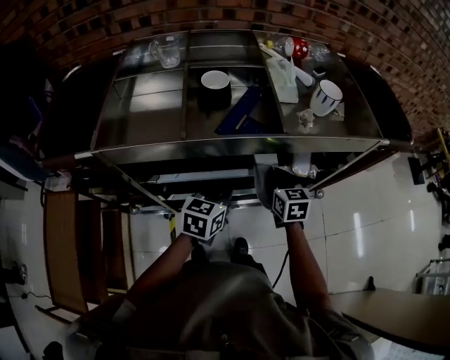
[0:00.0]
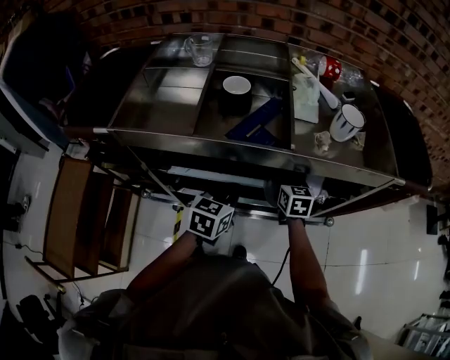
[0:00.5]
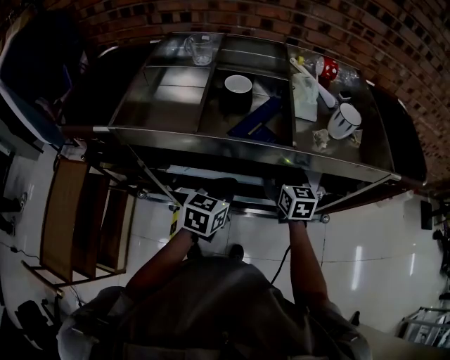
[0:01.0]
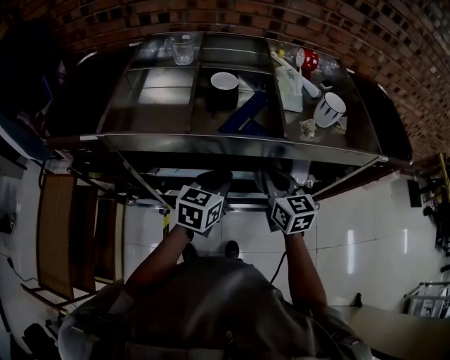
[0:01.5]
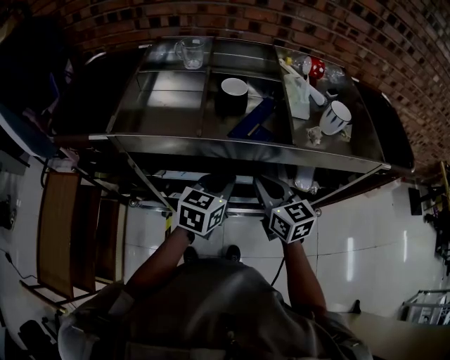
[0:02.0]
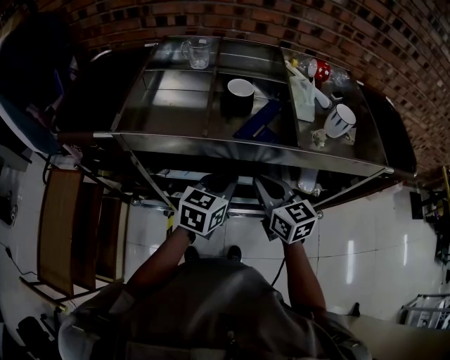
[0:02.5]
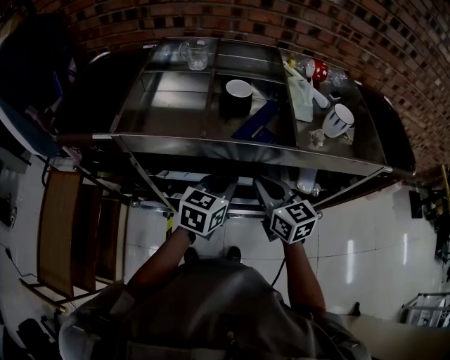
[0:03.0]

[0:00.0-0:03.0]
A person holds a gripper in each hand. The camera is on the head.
0:00.0 to 0:01.5: The right gripper moves upward, about 10 cm, and opens, then closes again.
0:01.5 to 0:03.0: The right gripper is displaced to the left by about 5 cm.

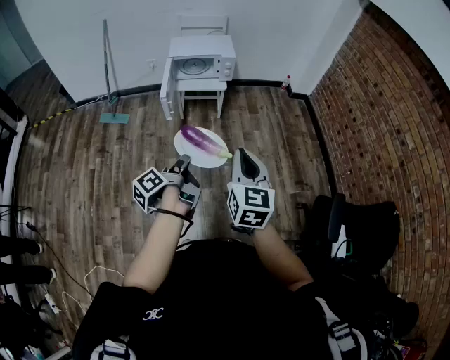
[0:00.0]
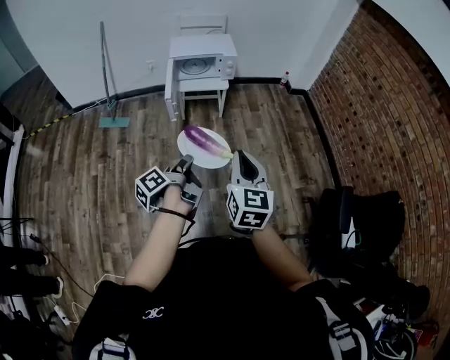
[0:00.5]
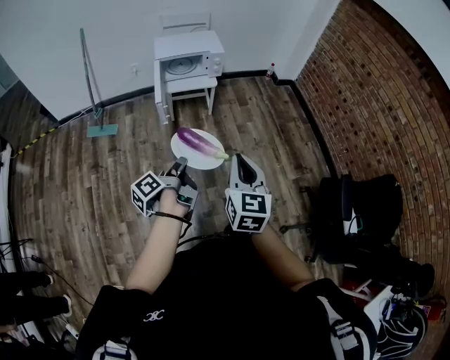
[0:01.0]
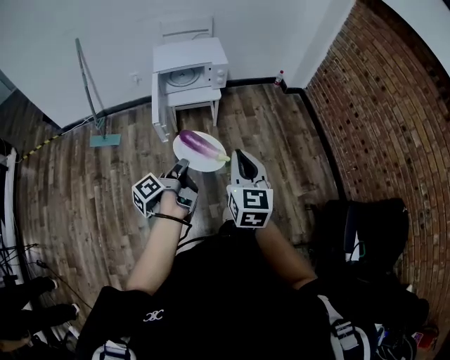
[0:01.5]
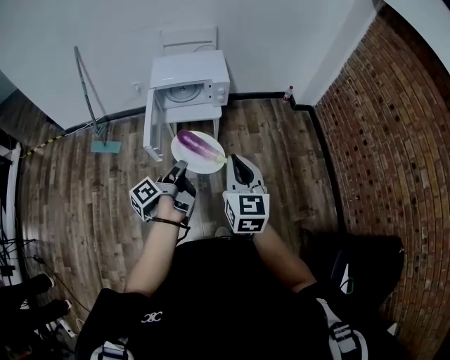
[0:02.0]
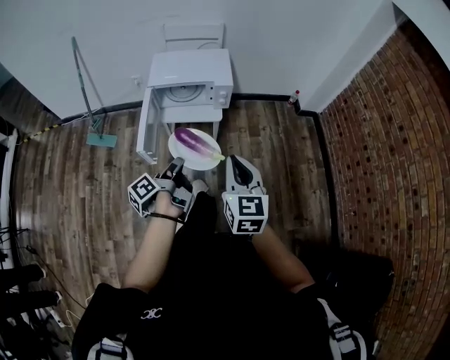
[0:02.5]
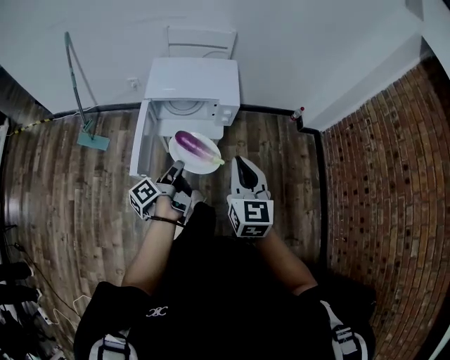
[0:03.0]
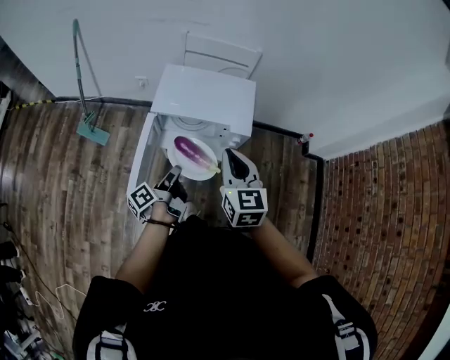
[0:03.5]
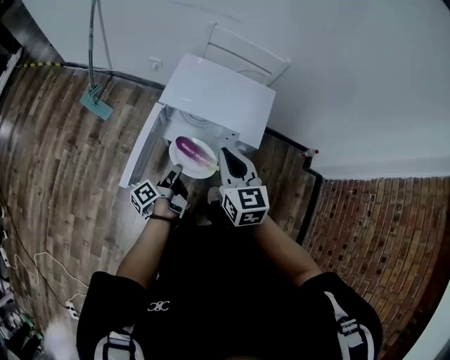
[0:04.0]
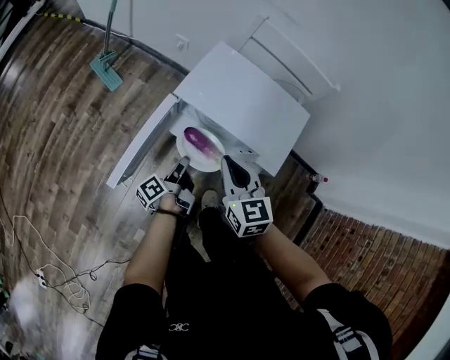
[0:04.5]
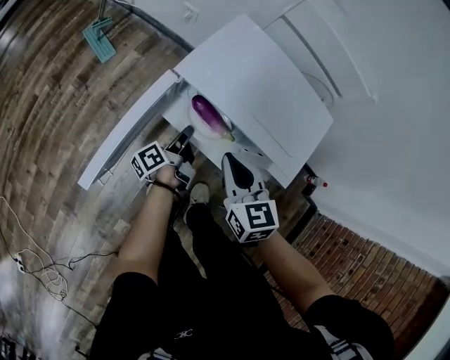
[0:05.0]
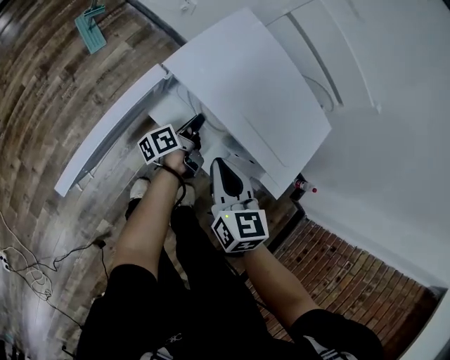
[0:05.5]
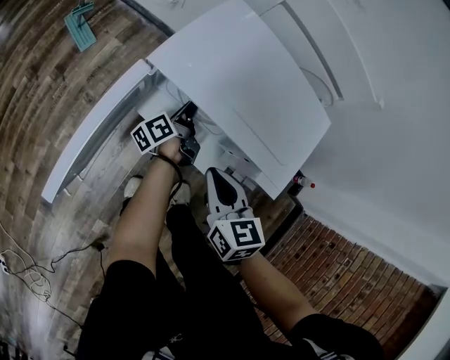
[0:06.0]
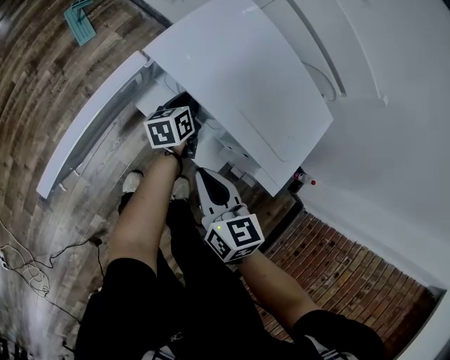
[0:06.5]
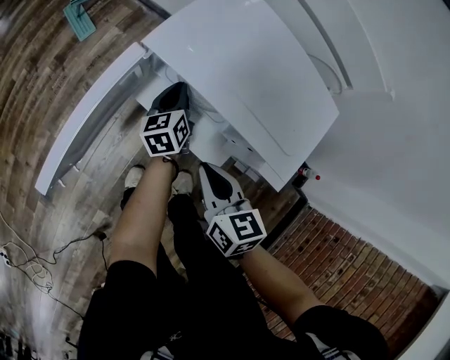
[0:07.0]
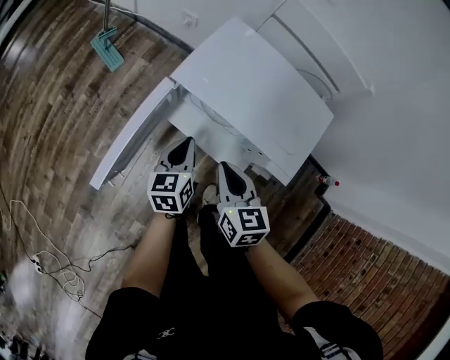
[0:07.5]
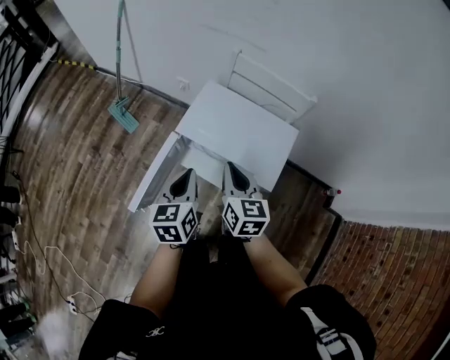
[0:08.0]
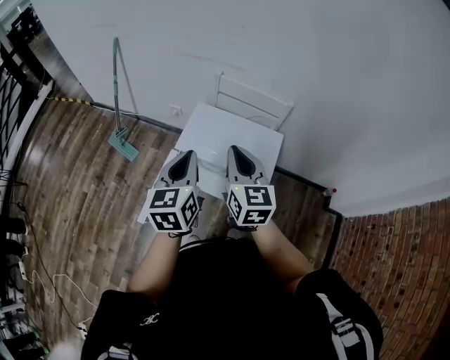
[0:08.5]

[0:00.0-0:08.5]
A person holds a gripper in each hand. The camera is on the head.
0:00.0 to 0:02.0: The right gripper moves some 30 cm.
0:02.0 to 0:04.0: The right gripper moves about 40 cm, and changes its angle by about 30 degrees.
0:04.0 to 0:06.5: The right gripper is displaced downward by approximately 25 cm, and turns by some 30 degrees.
0:06.5 to 0:08.5: The right gripper travels upward by some 35 cm, and swivels about 40 degrees.

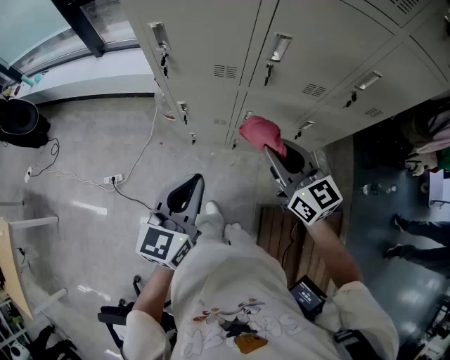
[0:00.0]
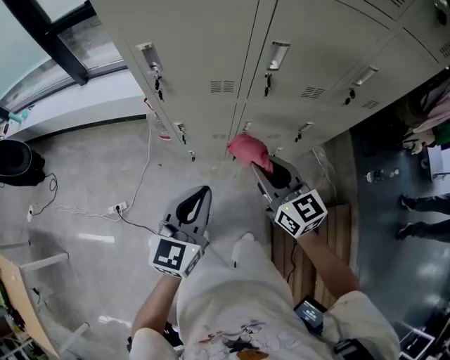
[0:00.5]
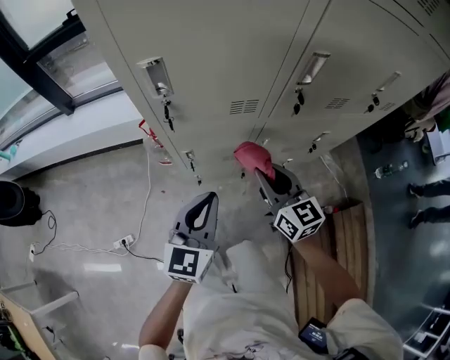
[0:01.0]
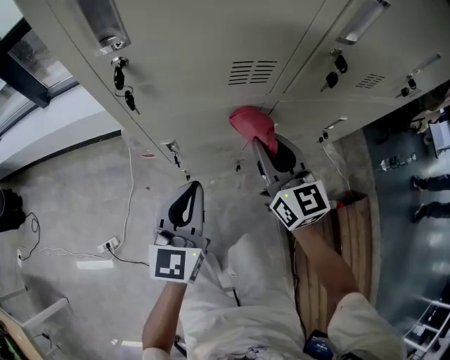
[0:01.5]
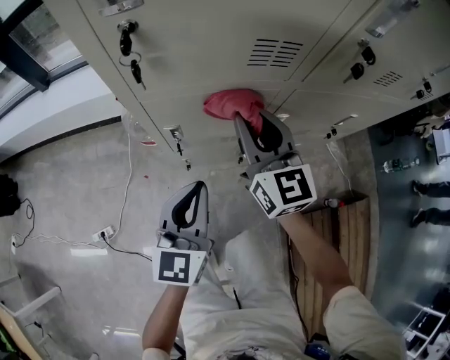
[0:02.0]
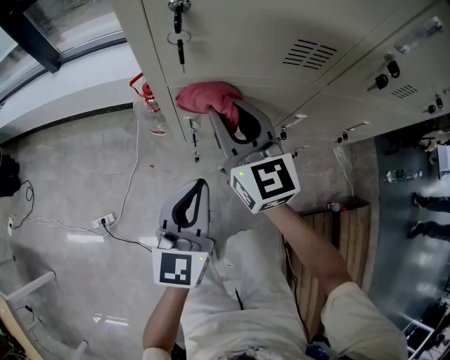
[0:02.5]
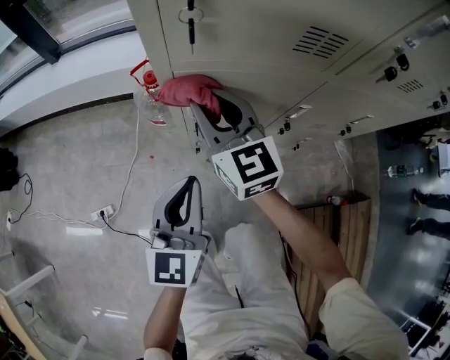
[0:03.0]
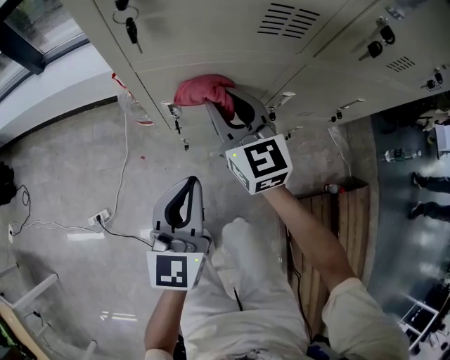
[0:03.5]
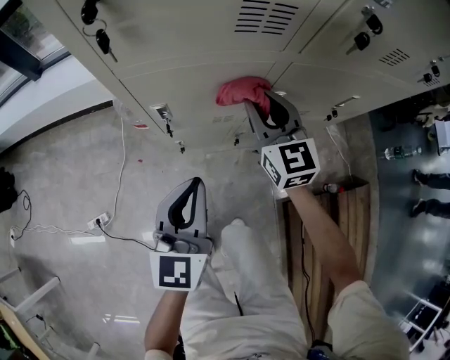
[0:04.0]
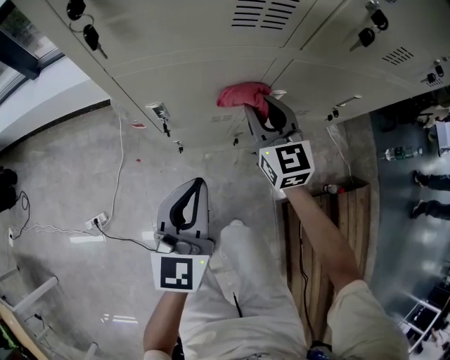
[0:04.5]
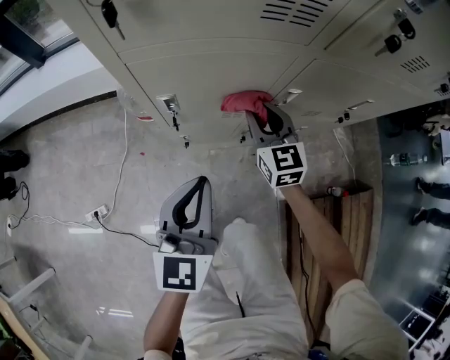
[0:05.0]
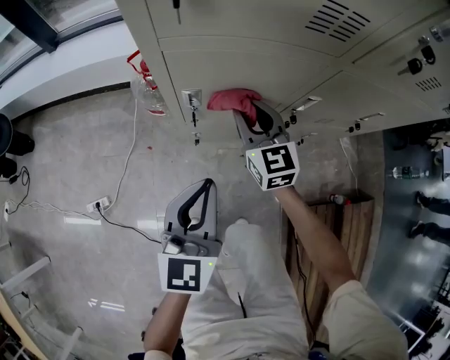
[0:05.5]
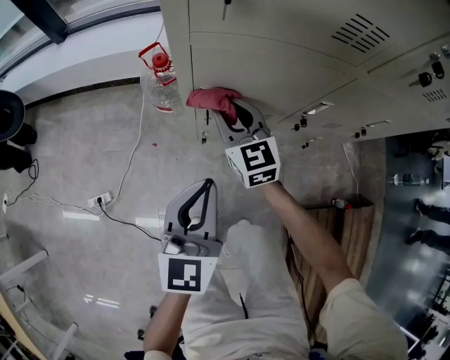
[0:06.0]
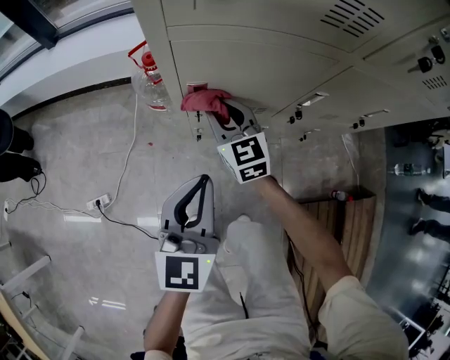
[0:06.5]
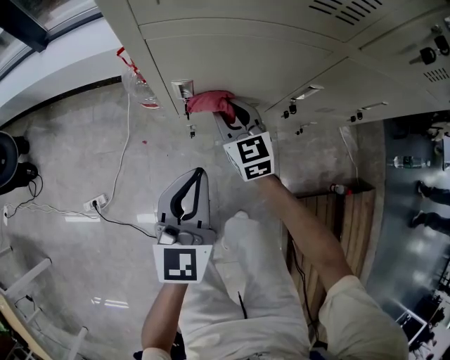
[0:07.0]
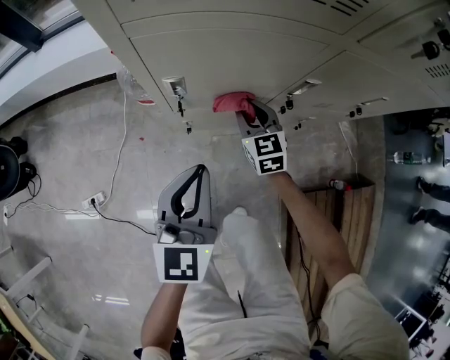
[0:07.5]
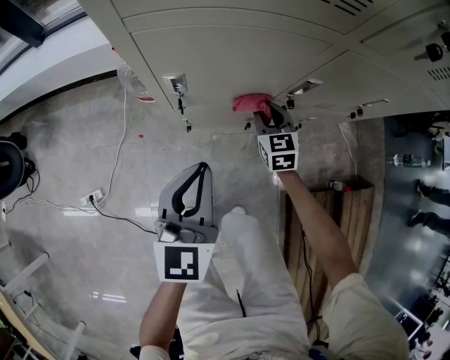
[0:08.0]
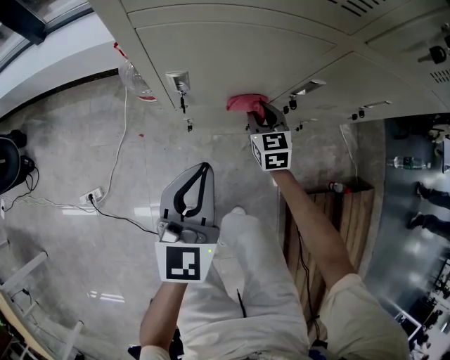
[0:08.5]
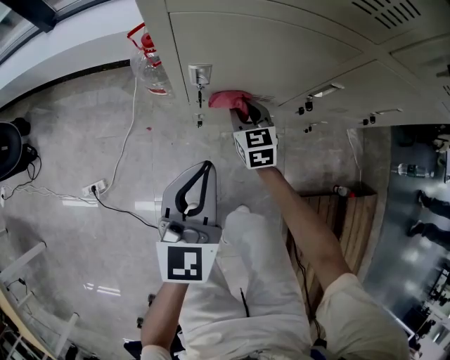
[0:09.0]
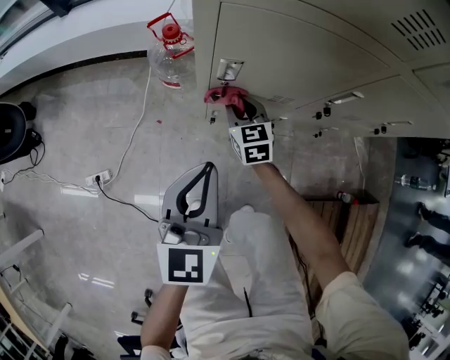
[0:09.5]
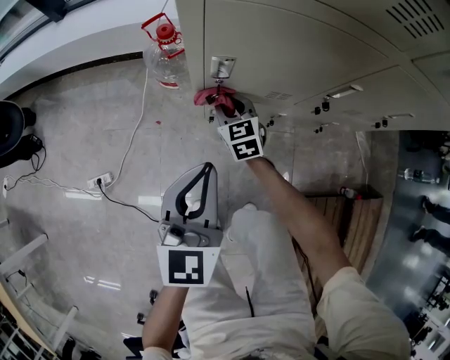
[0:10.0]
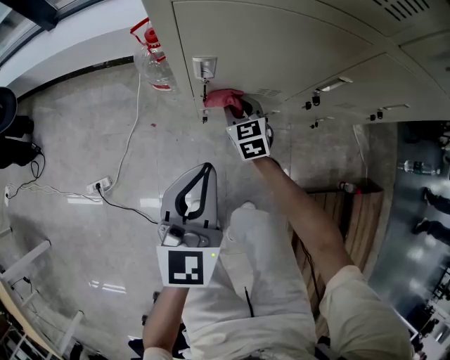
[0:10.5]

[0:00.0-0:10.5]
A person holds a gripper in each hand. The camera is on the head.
0:00.0 to 0:02.0: The right gripper heads downward, forward and to the left, covering approximately 35 cm, and turns by some 30 degrees. Meanwhile the left gripper goes some 30 cm downward and forward.
0:02.0 to 0:04.0: The left gripper goes to the left and returns, roughly 5 cm each way. The right gripper moves downward, roughly 5 cm, and travels to the left and back again, approximately 15 cm each way.
0:04.0 to 0:06.5: The left gripper heads to the left, covering approximately 5 cm, while the right gripper shifts about 20 cm to the left and downward.
0:06.5 to 0:08.5: The right gripper shifts approximately 20 cm to the right and downward.
0:08.5 to 0:10.5: The right gripper travels to the left by approximately 15 cm.

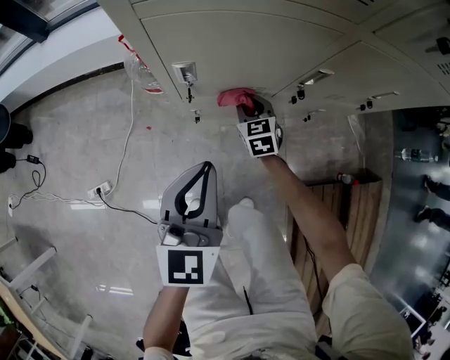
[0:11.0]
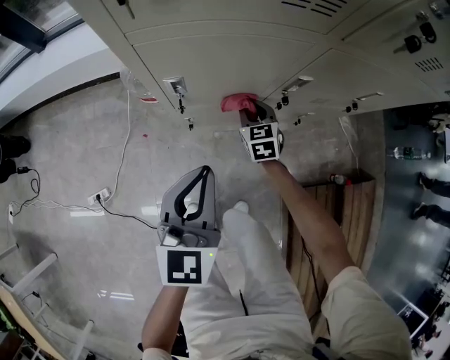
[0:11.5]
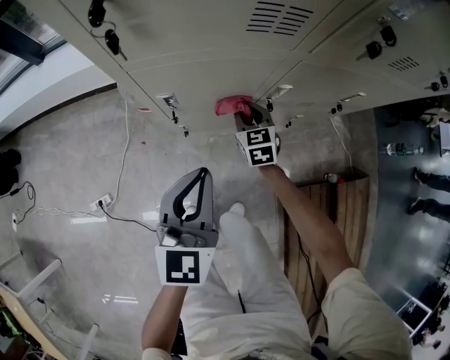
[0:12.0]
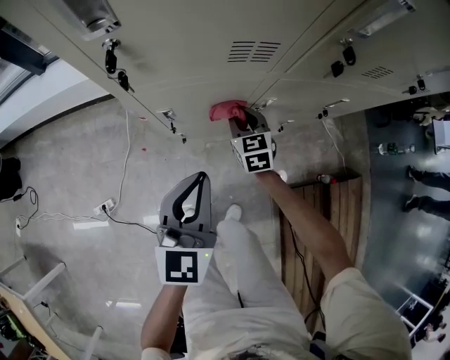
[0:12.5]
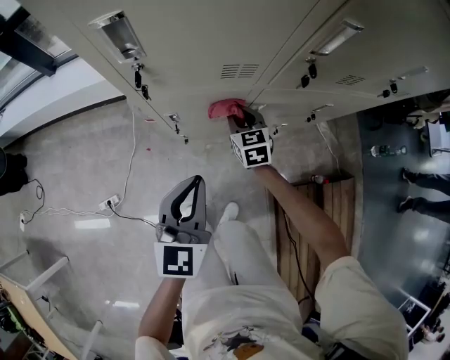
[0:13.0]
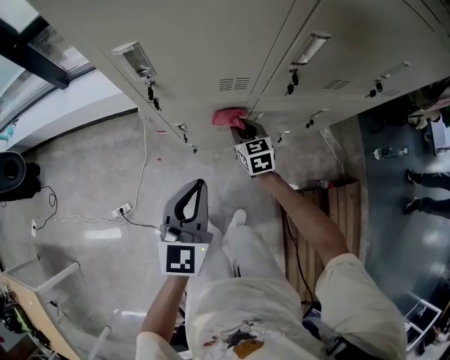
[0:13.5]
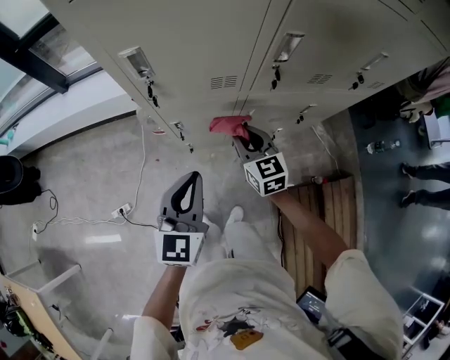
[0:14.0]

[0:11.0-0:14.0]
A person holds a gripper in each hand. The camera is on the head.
0:11.0 to 0:12.5: Both grippers move upward, roughly 15 cm.
0:12.5 to 0:14.0: The right gripper moves upward and backward, some 25 cm. The left gripper heads upward, covering some 15 cm.

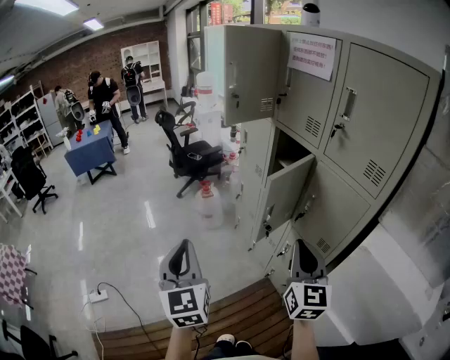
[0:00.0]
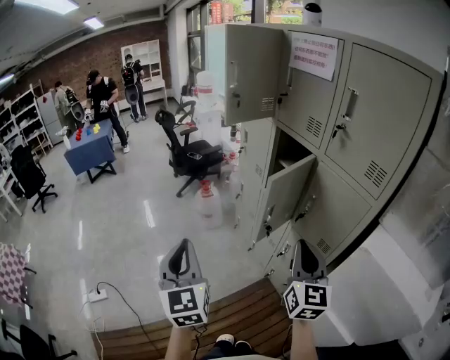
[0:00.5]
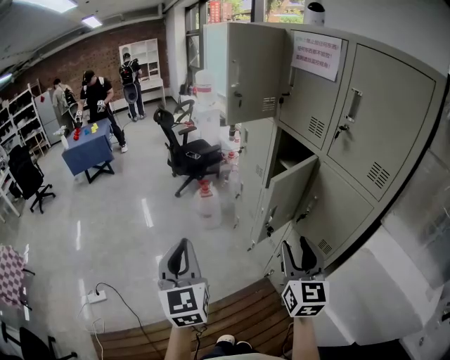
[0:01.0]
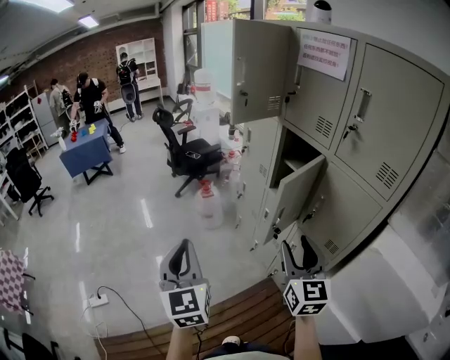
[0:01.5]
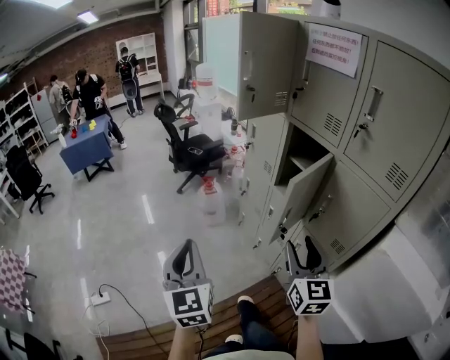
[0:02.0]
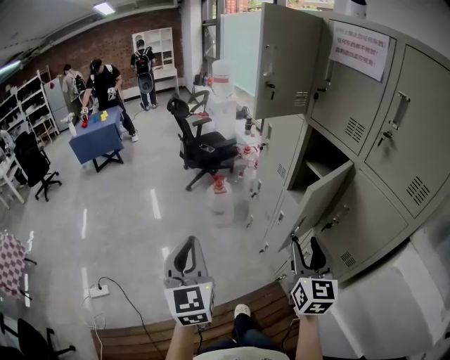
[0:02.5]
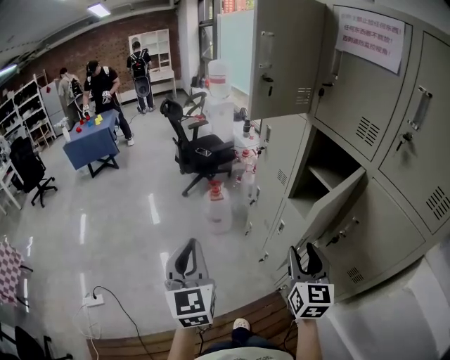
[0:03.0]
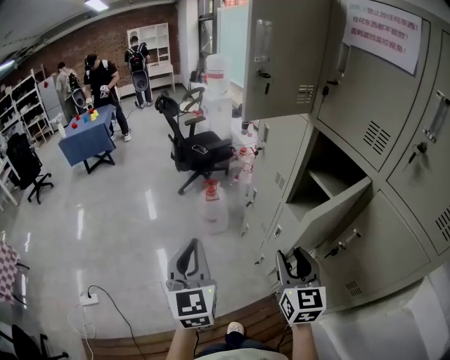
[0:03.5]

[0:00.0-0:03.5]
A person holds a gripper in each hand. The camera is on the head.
0:00.0 to 0:02.0: The left gripper heads forward, covering roughly 5 cm. The right gripper heads forward and to the left, covering some 10 cm, and opens.
0:02.0 to 0:03.5: The grippers both shift forward and downward by some 20 cm.
